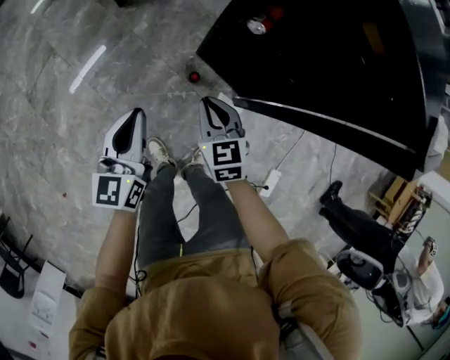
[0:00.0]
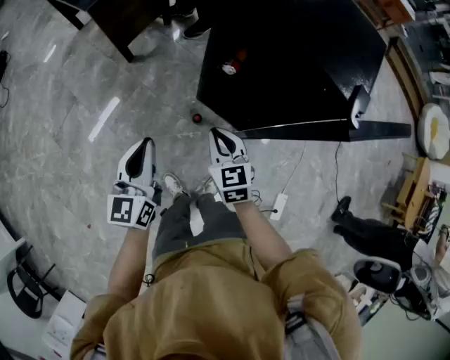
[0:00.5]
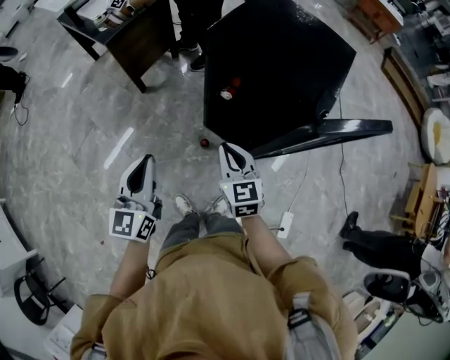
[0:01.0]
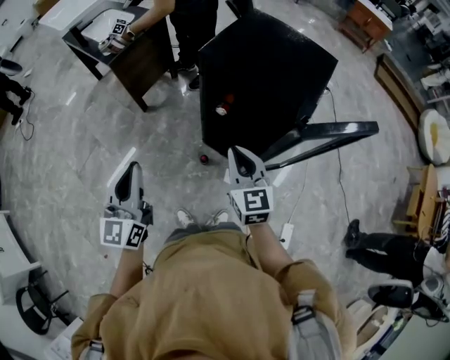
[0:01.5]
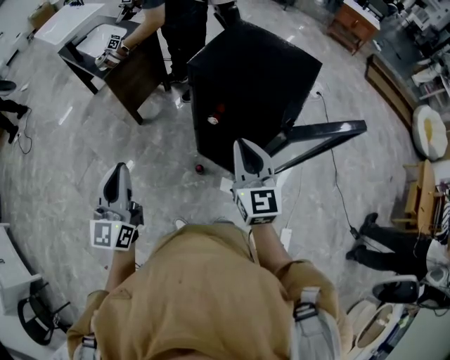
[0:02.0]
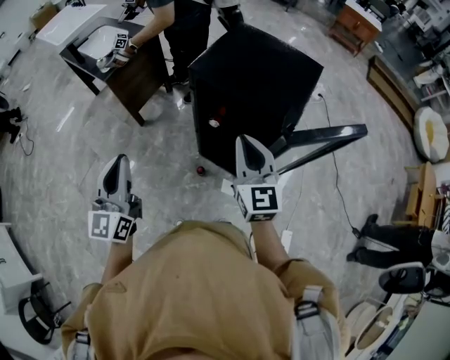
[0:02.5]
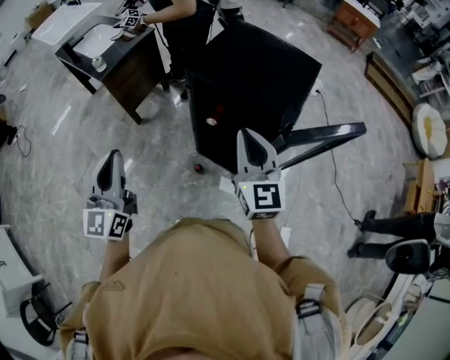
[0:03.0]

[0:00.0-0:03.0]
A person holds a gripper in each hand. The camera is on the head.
0:00.0 to 0:01.5: Both grippers move upward, some 35 cm. The right gripper changes its angle by about 20 degrees. The left gripper rotates roughly 20 degrees.
0:01.5 to 0:03.0: The left gripper shifts some 5 cm upward; the right gripper is displaced upward by some 10 cm.

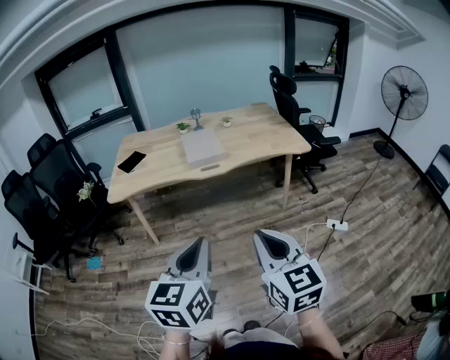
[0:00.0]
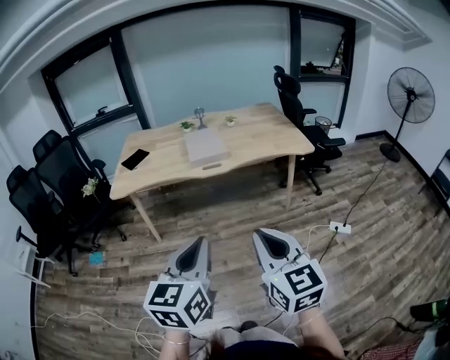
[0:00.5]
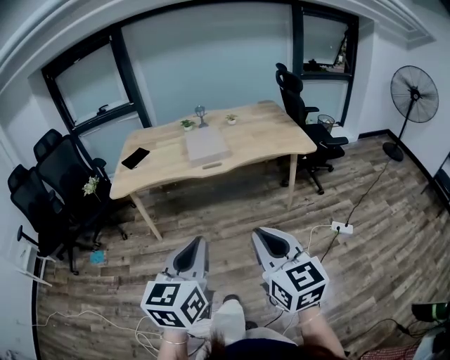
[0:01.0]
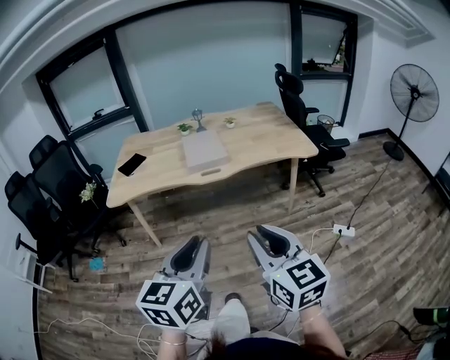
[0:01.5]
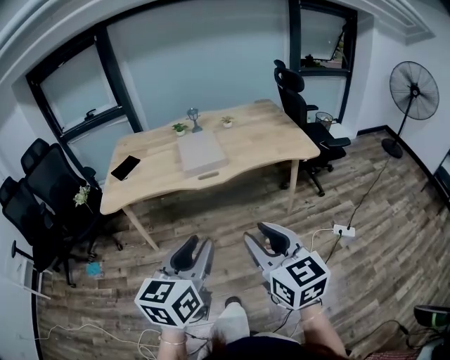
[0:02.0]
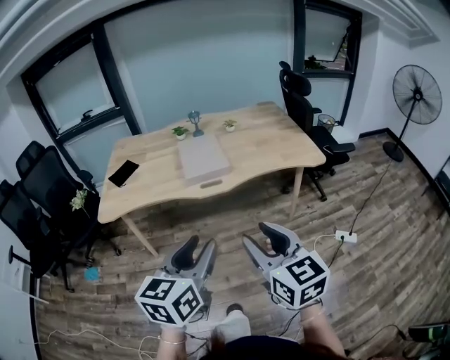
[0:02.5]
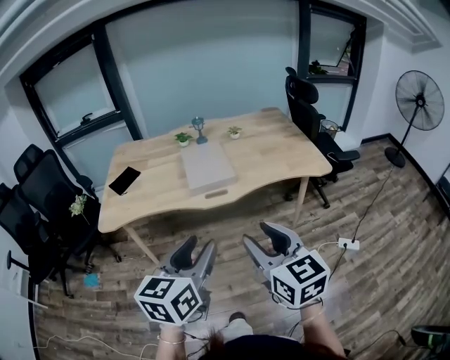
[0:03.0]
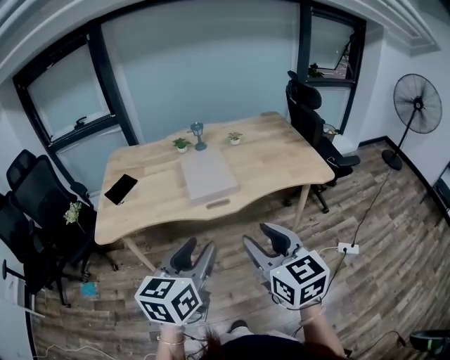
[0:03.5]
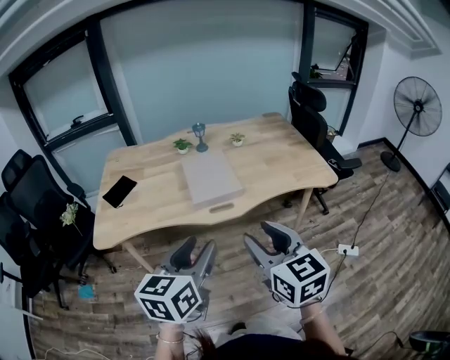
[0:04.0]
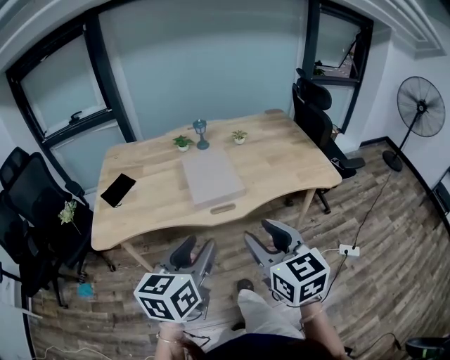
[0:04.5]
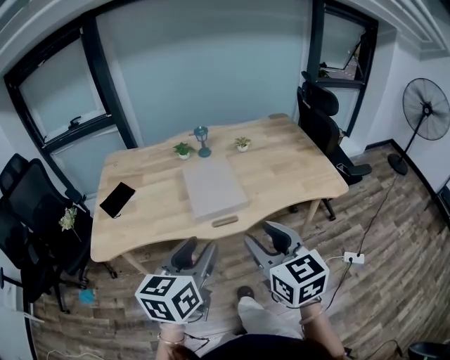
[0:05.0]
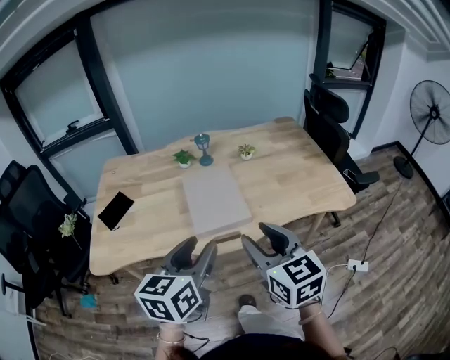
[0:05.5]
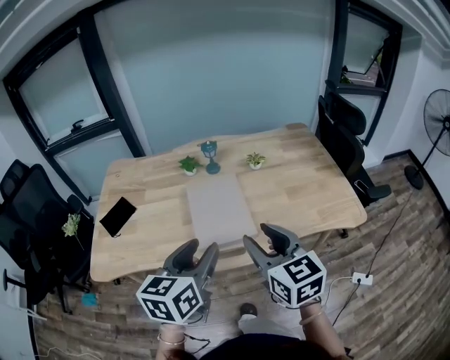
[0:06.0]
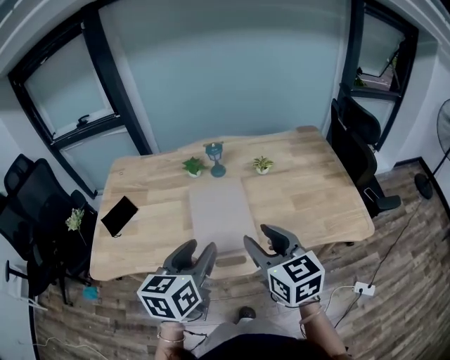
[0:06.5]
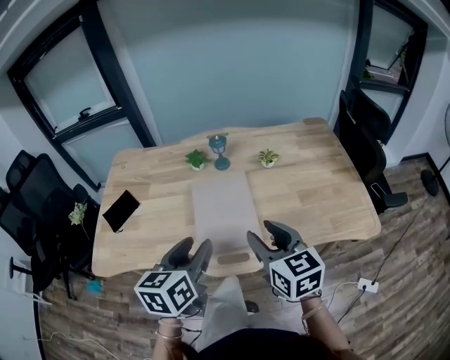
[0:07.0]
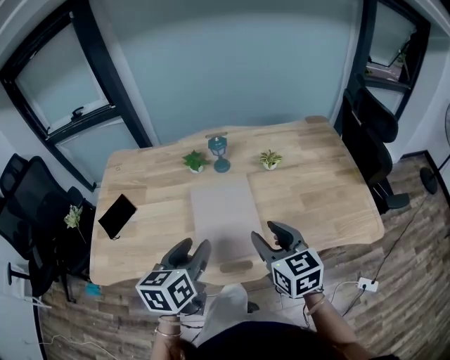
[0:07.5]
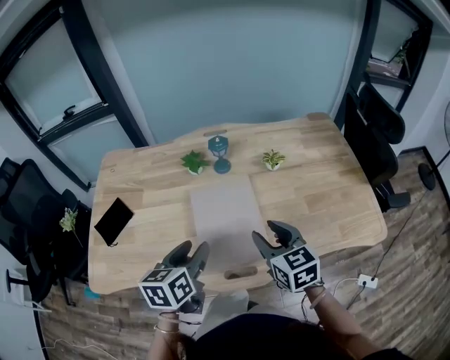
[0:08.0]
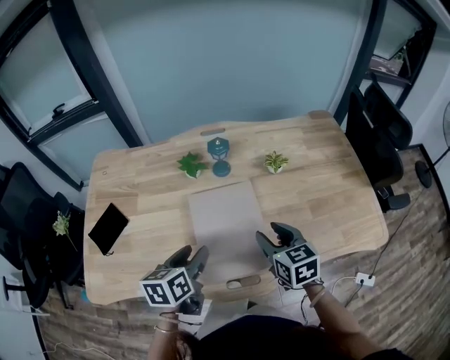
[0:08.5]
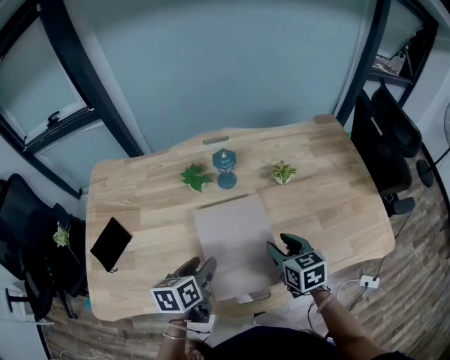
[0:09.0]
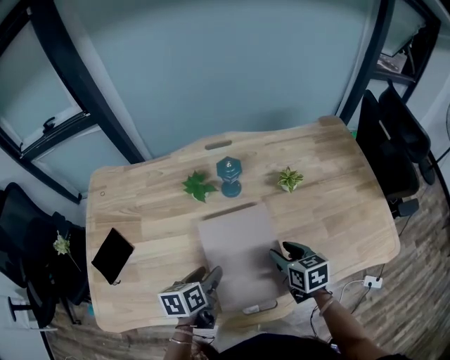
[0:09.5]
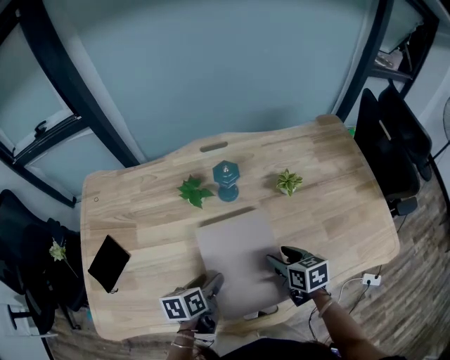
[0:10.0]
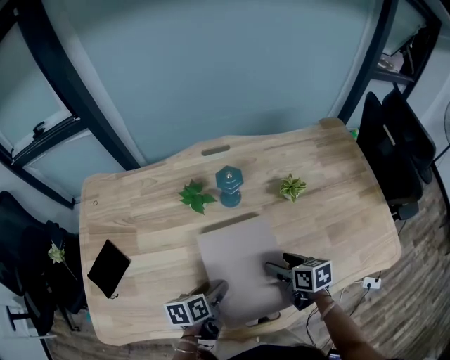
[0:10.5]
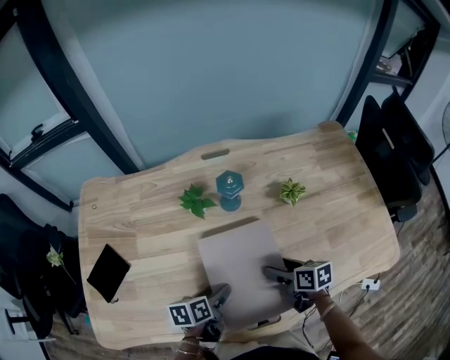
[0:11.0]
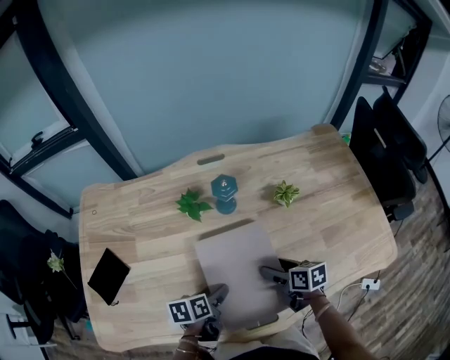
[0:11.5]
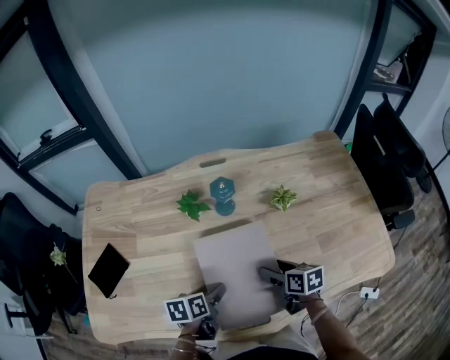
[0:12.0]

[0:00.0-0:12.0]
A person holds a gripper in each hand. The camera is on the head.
0:00.0 to 0:02.0: The two grippers go about 10 cm forward. The left gripper opens its fingers. Meanwhile the right gripper opens up.
0:02.0 to 0:04.0: The left gripper is displaced forward and to the left by roughly 25 cm; the right gripper is displaced forward by roughly 20 cm.
0:04.0 to 0:06.0: The grippers both shift forward by some 25 cm.
0:06.0 to 0:08.0: Both grippers travel together forward and downward, approximately 20 cm.
0:08.0 to 0:10.0: The grippers both shift downward and forward by about 20 cm. The right gripper rotates some 30 degrees. The left gripper turns by approximately 30 degrees.
0:10.0 to 0:12.0: The grippers move only a little.

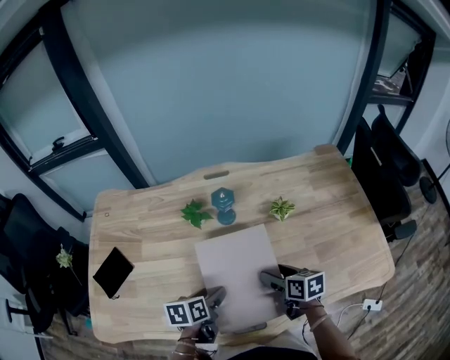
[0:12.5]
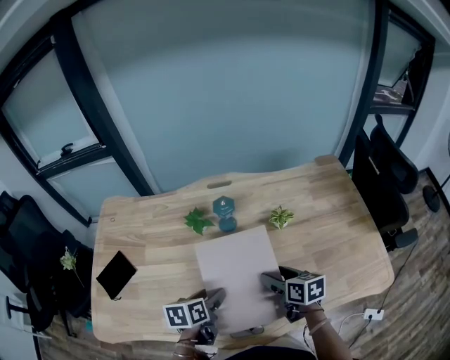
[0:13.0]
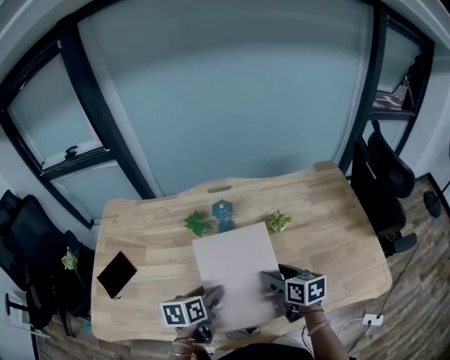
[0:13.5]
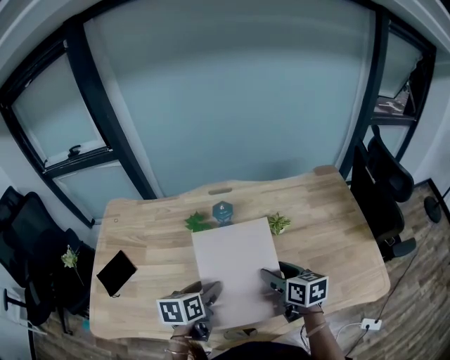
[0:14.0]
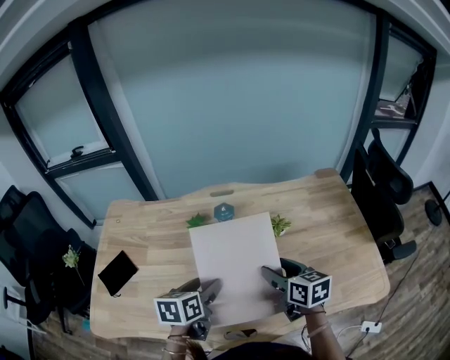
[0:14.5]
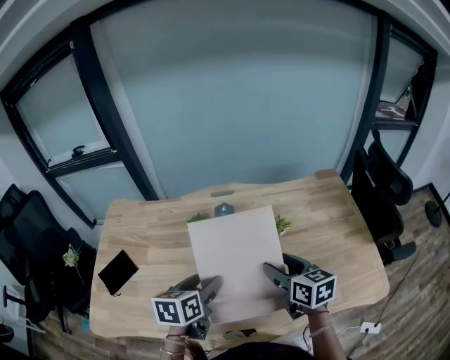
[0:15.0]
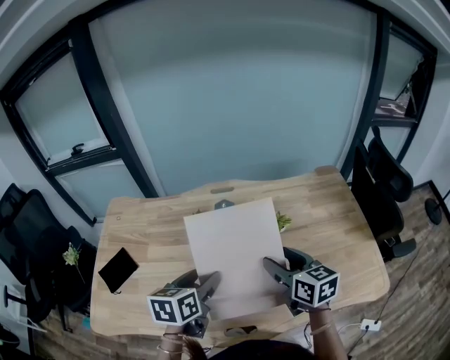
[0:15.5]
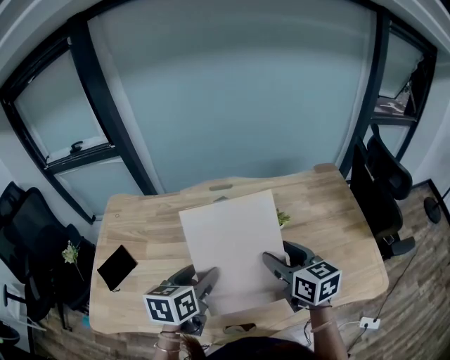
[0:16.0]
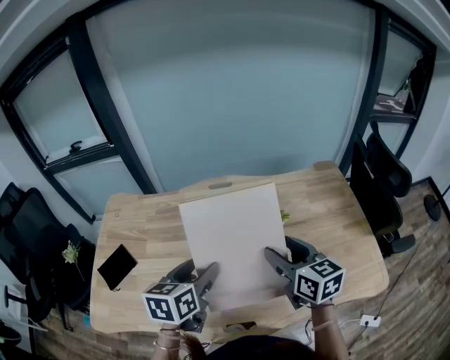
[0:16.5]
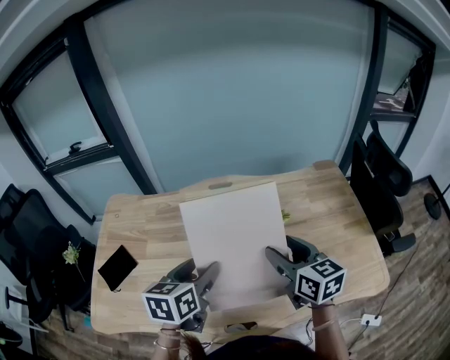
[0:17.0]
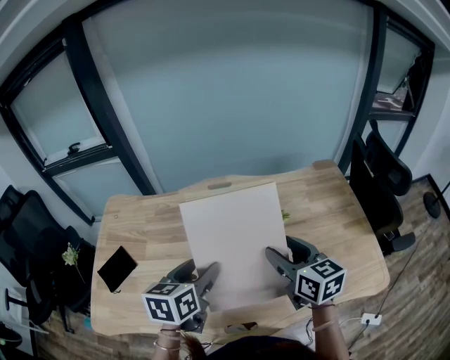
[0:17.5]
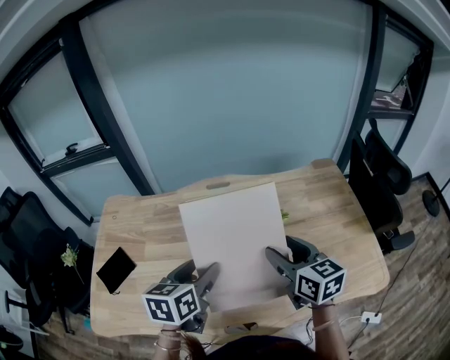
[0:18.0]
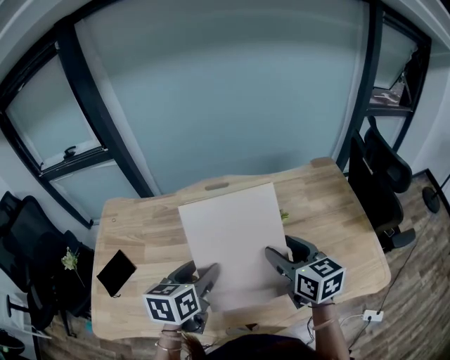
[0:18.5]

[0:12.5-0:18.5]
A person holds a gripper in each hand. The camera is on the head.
0:12.5 to 0:14.5: The grippers both shift upward by approximately 10 cm.
0:14.5 to 0:16.5: Both grippers travel together upward, roughly 10 cm.
0:16.5 to 0:18.5: The grippers make only small movements.

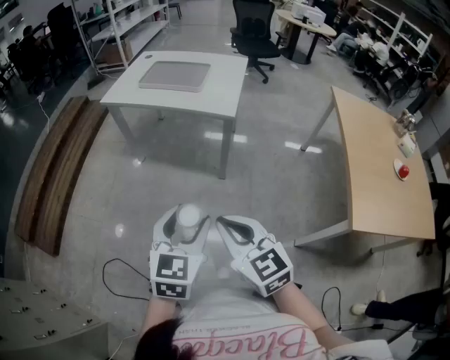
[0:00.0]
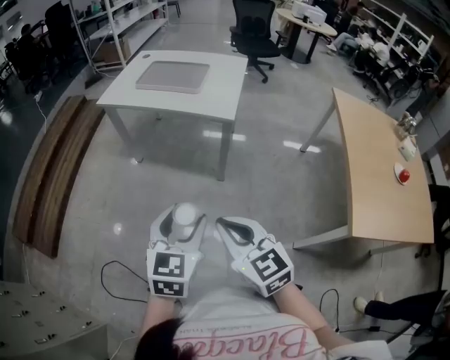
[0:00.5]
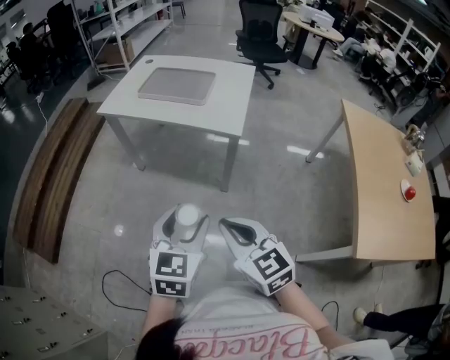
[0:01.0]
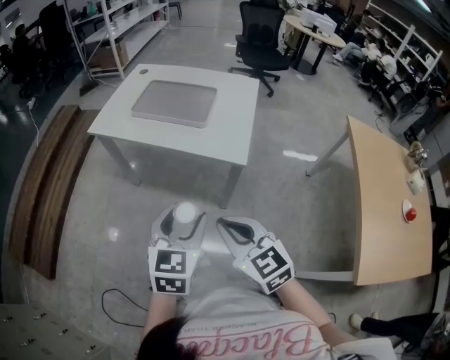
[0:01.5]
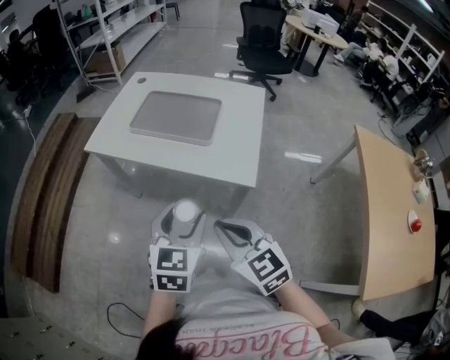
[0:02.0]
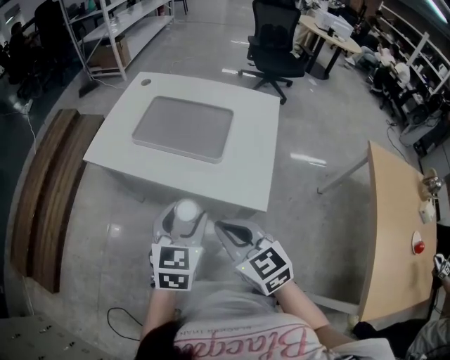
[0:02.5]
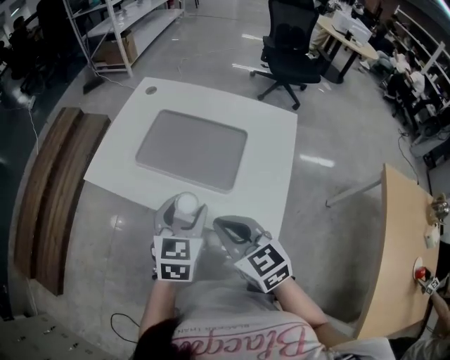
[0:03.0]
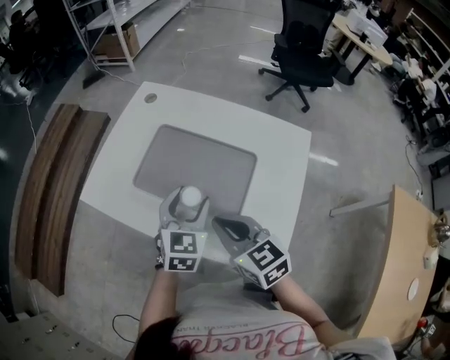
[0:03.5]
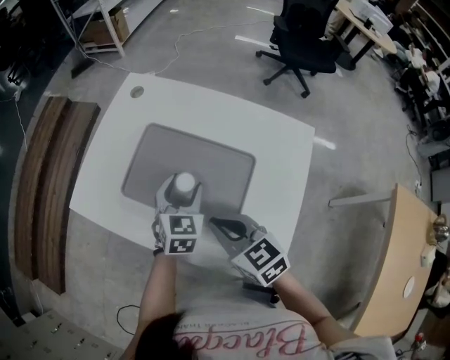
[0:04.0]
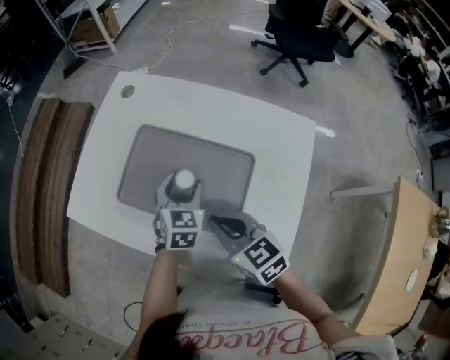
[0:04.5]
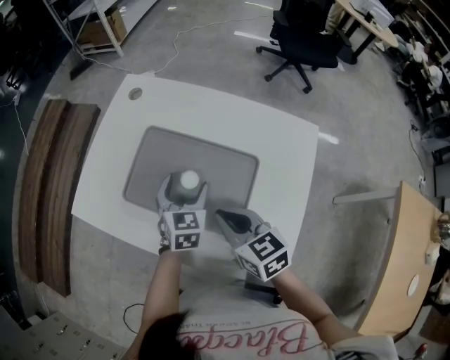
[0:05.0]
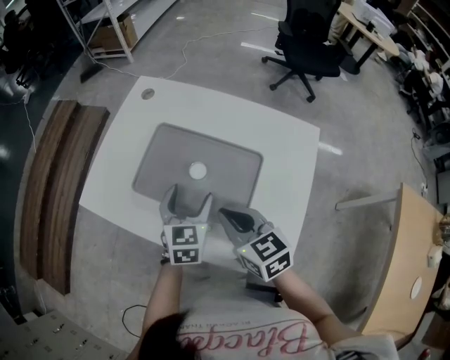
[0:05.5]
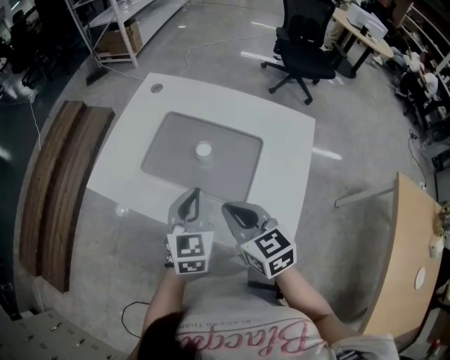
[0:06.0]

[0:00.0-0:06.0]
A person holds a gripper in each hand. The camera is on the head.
0:00.0 to 0:02.0: Both grippers move forward, approximately 30 cm.
0:02.0 to 0:04.0: Both grippers move forward, roughly 30 cm.
0:04.0 to 0:06.0: The left gripper travels backward and upward by roughly 10 cm, and closes its fingers.
